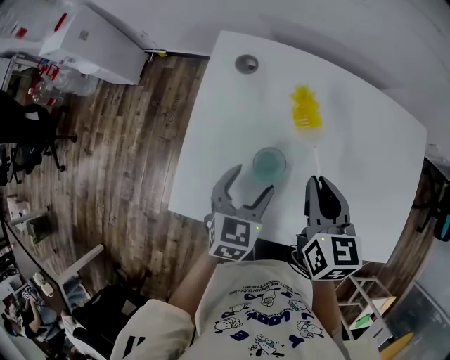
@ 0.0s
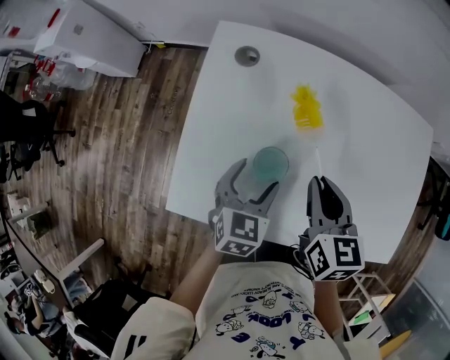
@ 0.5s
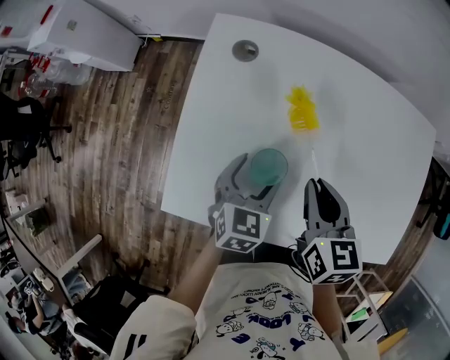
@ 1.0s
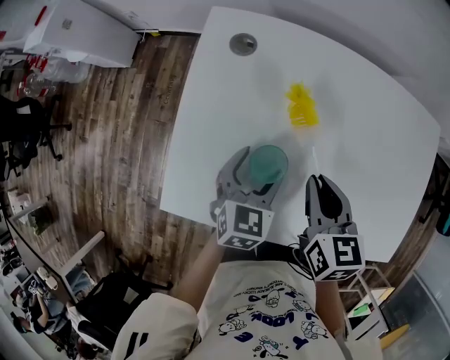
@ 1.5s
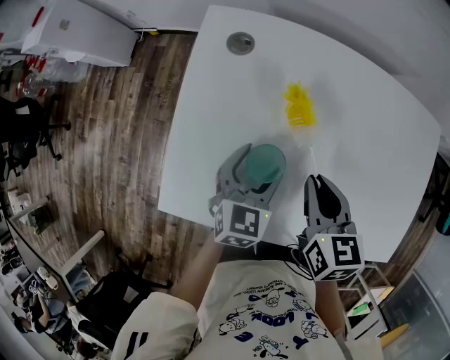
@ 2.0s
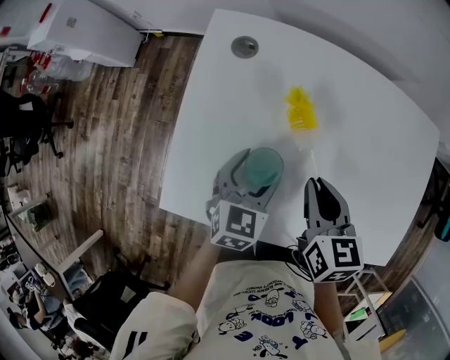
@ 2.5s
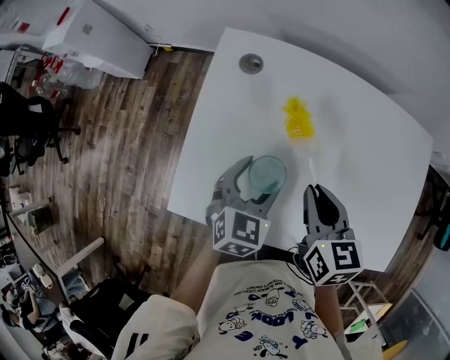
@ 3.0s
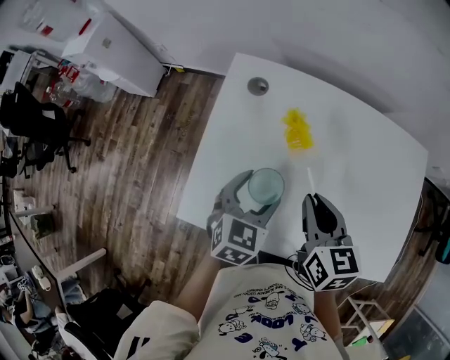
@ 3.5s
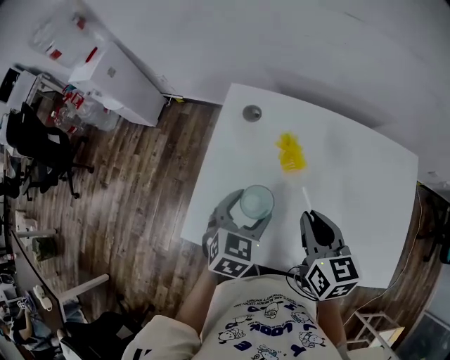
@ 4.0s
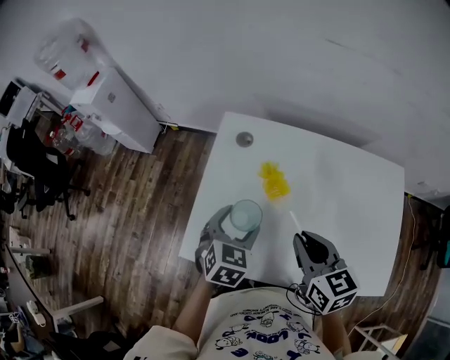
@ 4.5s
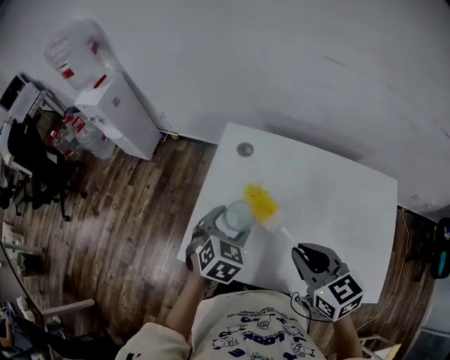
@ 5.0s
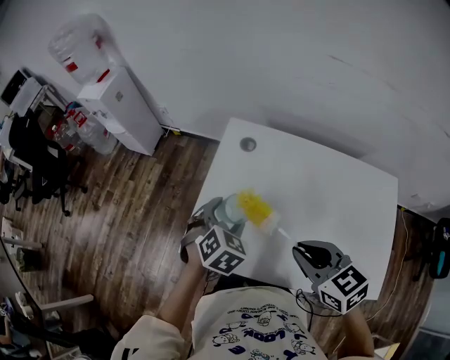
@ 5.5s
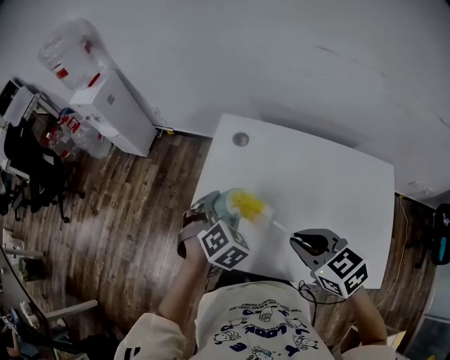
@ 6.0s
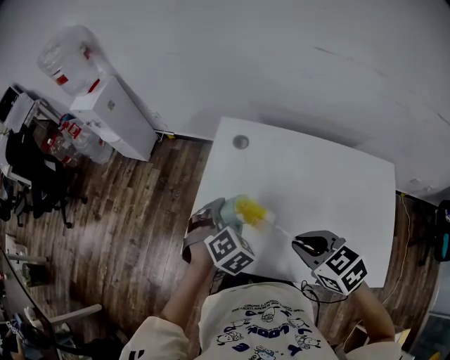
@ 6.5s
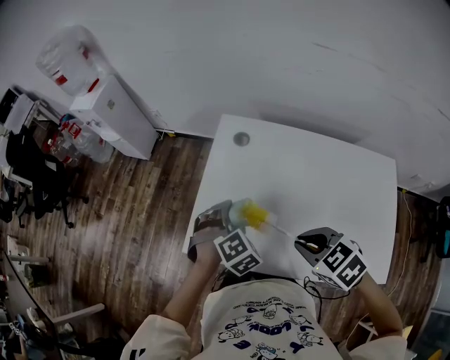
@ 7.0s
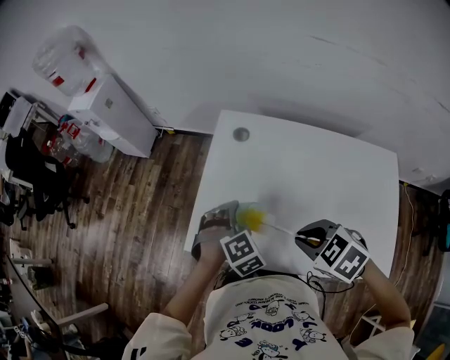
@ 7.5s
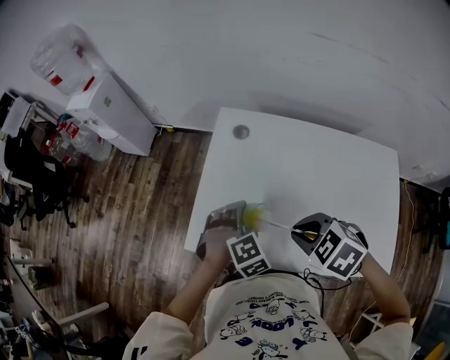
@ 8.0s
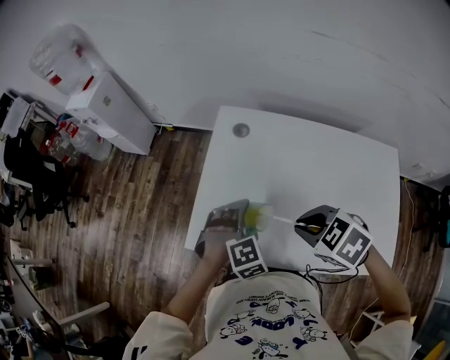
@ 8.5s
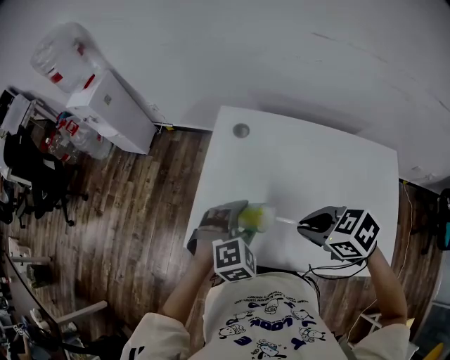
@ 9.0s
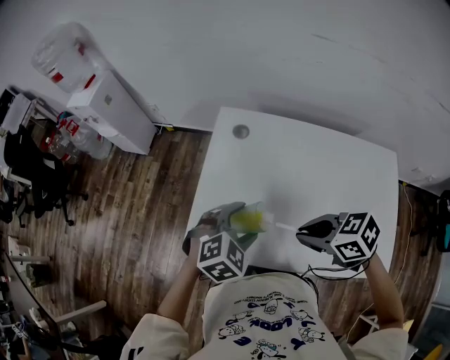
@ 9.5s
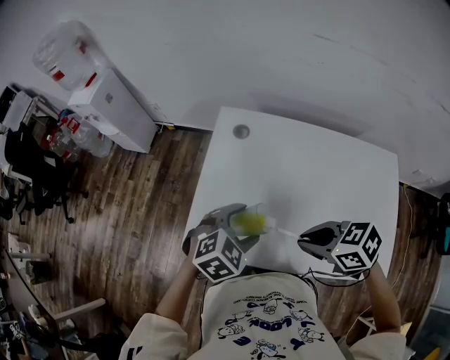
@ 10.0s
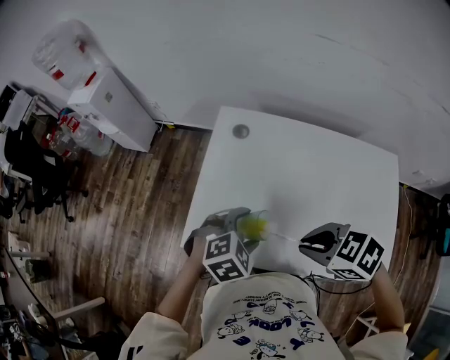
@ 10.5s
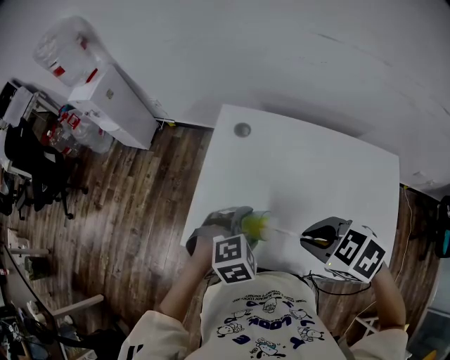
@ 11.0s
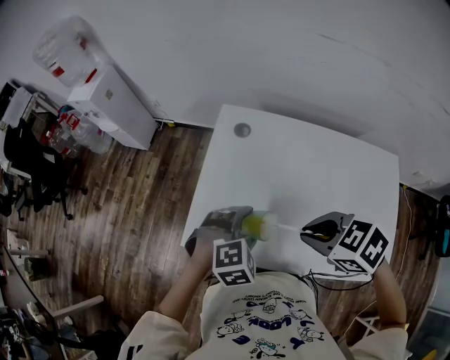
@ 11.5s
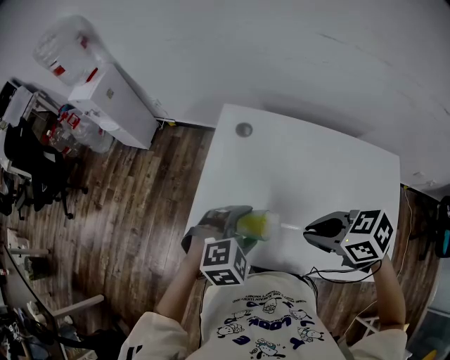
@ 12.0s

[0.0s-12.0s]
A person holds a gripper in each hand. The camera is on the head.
0.0s to 2.0s: The right gripper travels downward by about 5 cm; the left gripper changes place by roughly 5 cm.
2.0s to 4.0s: Both grippers travel together upward, roughly 10 cm.
4.0s to 6.0s: The right gripper ends up roughly 10 cm from where it was, and swivels about 40 degrees. Meanwhile the left gripper moves approximately 5 cm, and swivels some 30 degrees.
6.0s to 8.0s: The right gripper swivels roughly 30 degrees. The left gripper heads backward, covering approximately 5 cm, and turns by approximately 20 degrees.
8.0s to 10.0s: The right gripper rotates approximately 30 degrees. The left gripper heads upward, covering some 5 cm, and turns by some 30 degrees.

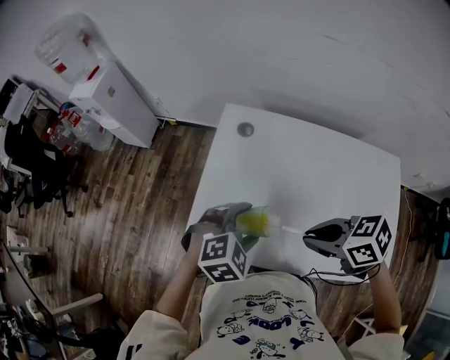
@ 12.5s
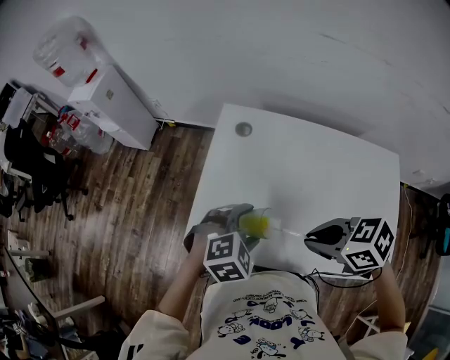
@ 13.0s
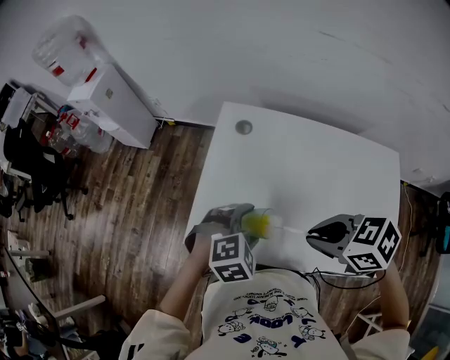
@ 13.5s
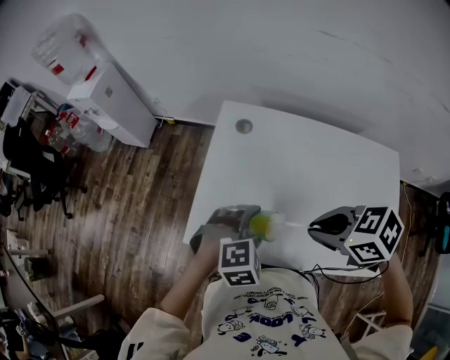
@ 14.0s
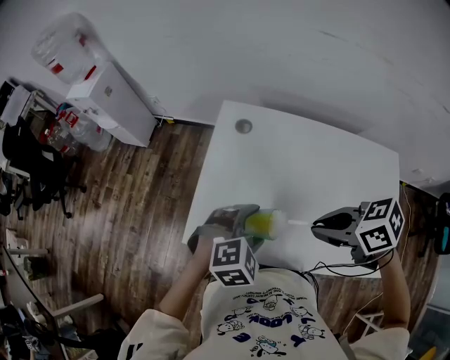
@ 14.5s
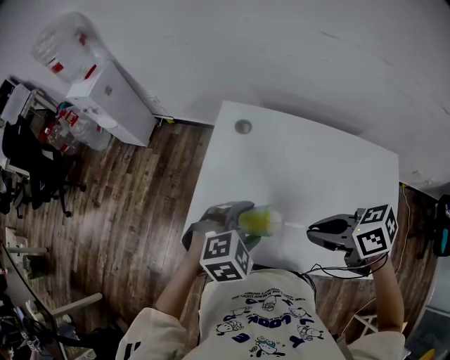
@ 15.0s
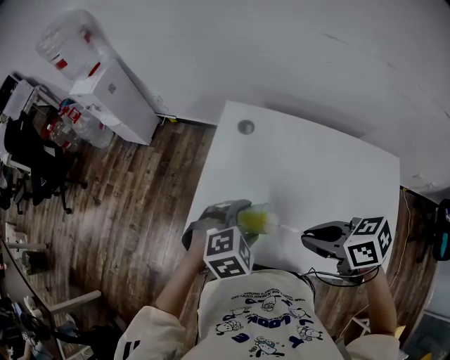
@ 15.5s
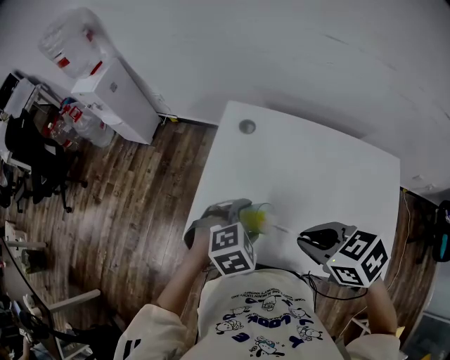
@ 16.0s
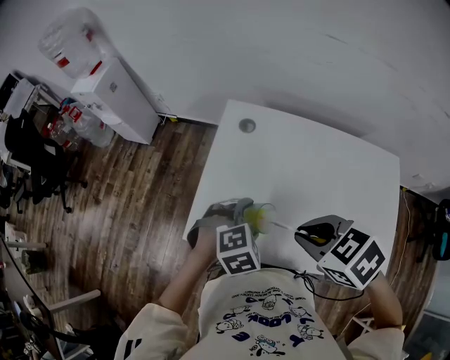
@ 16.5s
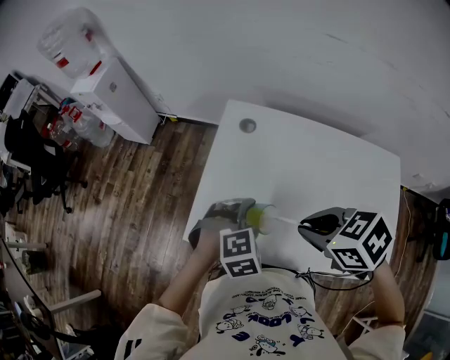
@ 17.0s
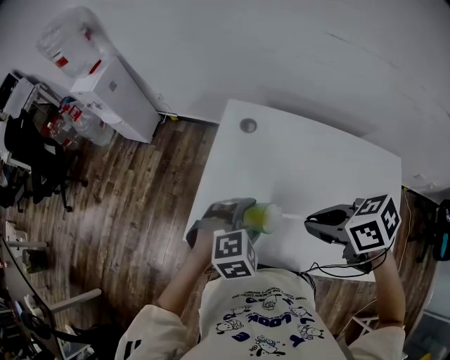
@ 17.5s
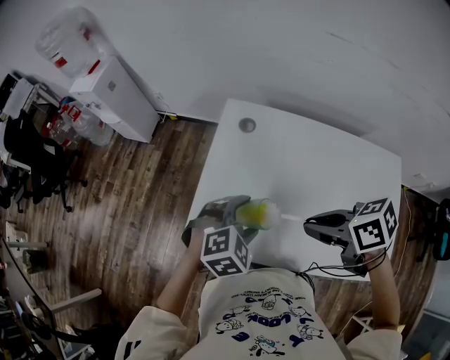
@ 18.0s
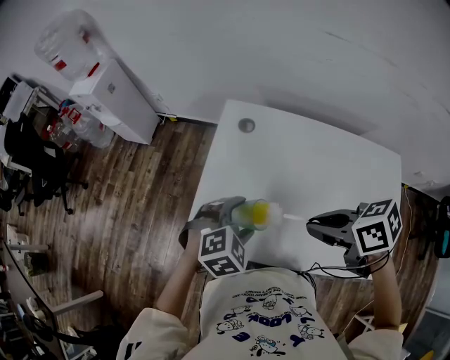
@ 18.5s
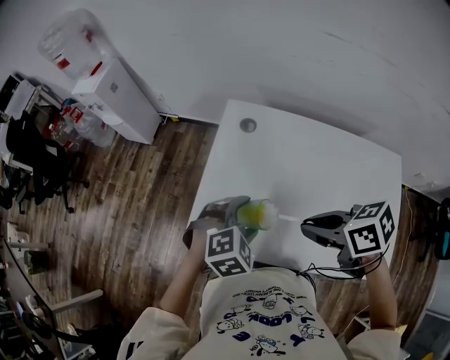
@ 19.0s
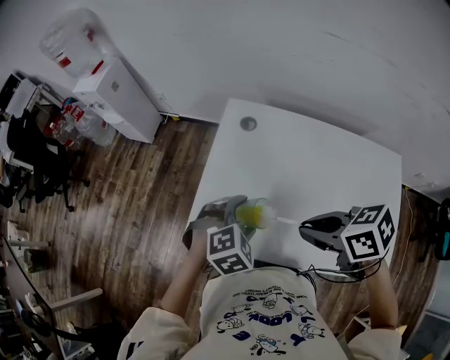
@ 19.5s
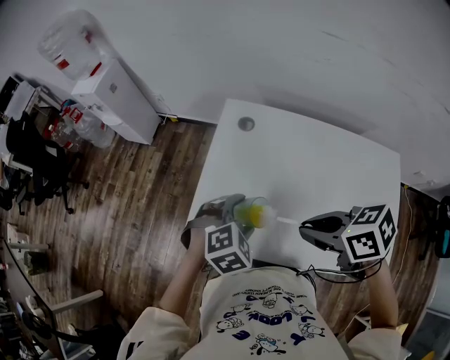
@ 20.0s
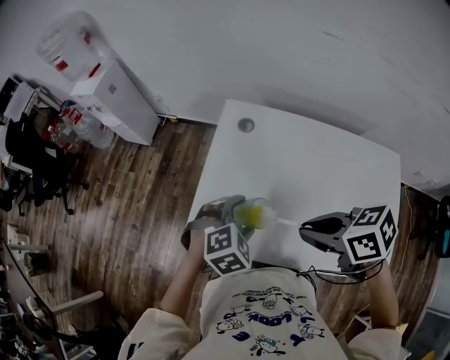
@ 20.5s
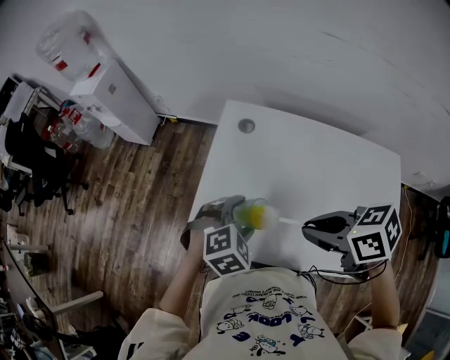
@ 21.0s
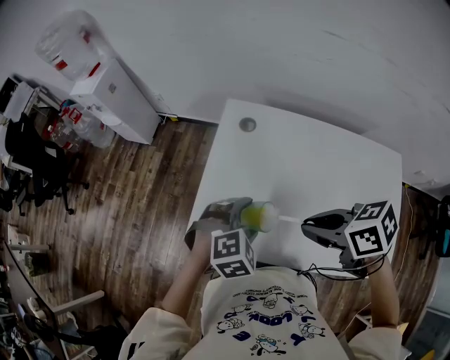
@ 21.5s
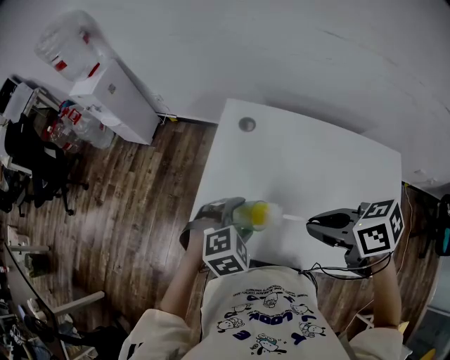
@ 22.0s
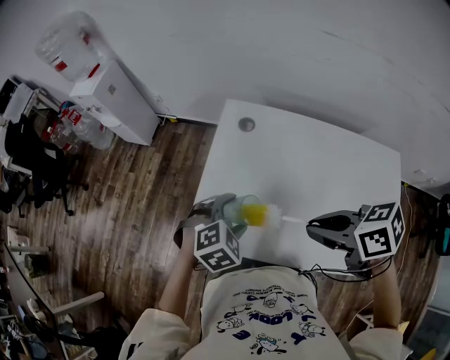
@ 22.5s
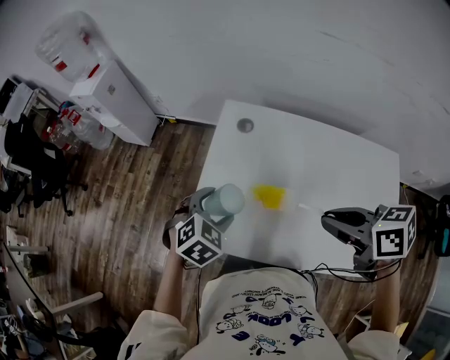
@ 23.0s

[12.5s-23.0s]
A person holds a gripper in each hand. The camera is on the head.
12.5s to 14.5s: The grippers move only a little.
14.5s to 16.5s: The right gripper ends up approximately 5 cm from where it was, and swivels roughly 20 degrees.
16.5s to 19.0s: The right gripper changes its angle by about 30 degrees.
19.0s to 21.0s: The grippers move only a little.
21.0s to 23.0s: The right gripper moves approximately 5 cm. The left gripper shifts approximately 5 cm to the left.

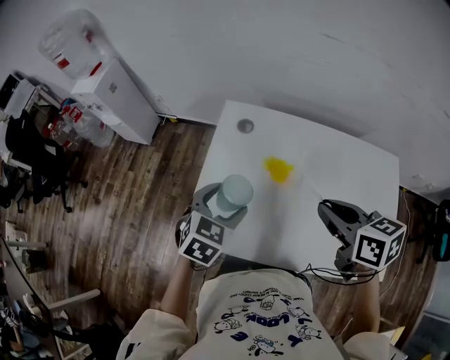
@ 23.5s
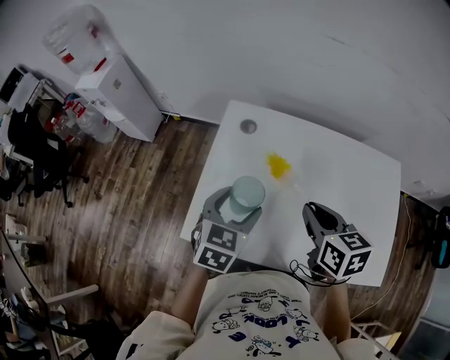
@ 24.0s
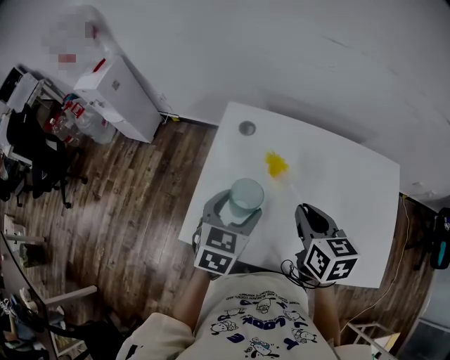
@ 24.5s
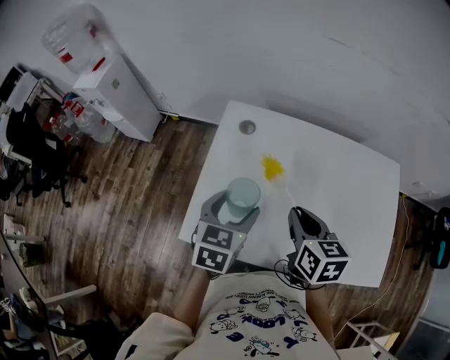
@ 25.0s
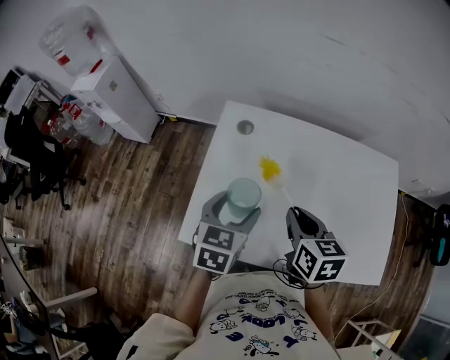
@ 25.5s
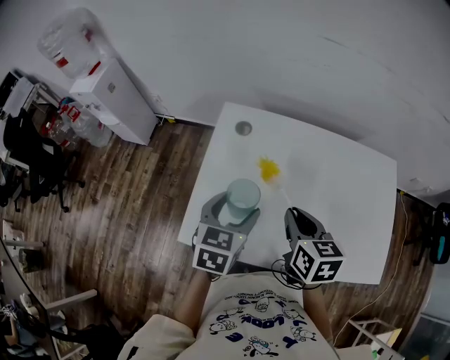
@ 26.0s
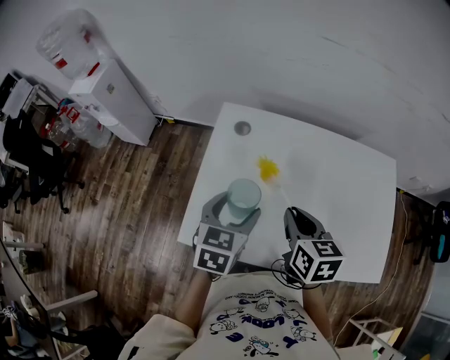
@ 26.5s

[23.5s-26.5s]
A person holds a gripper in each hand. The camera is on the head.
23.5s to 25.0s: The right gripper heads downward, covering approximately 5 cm.
25.0s to 26.5s: Both grippers stay put.

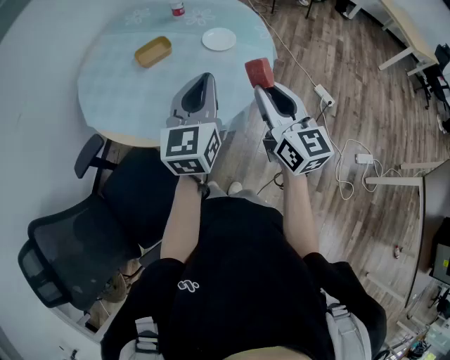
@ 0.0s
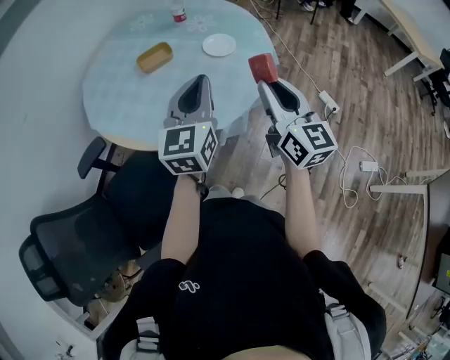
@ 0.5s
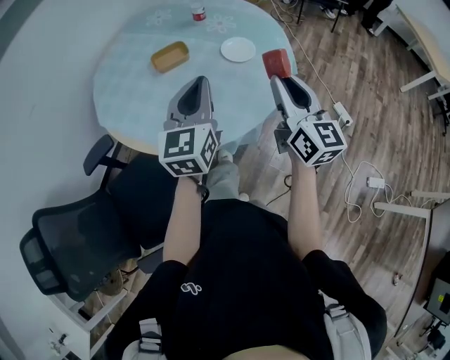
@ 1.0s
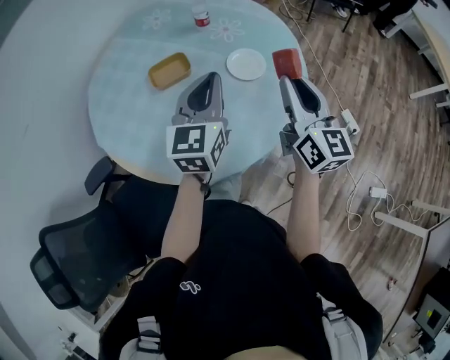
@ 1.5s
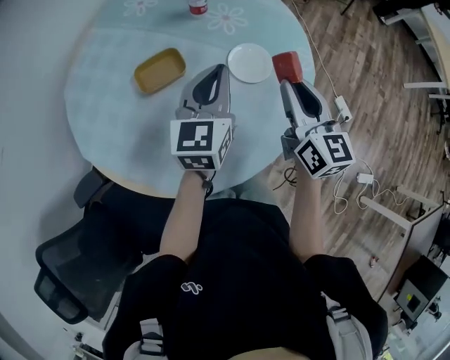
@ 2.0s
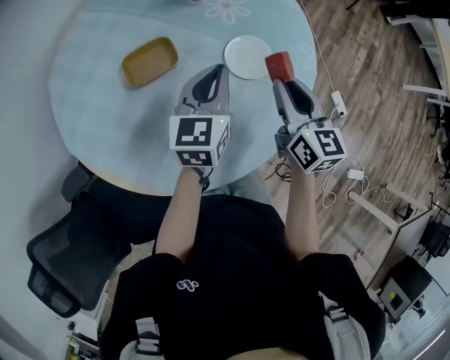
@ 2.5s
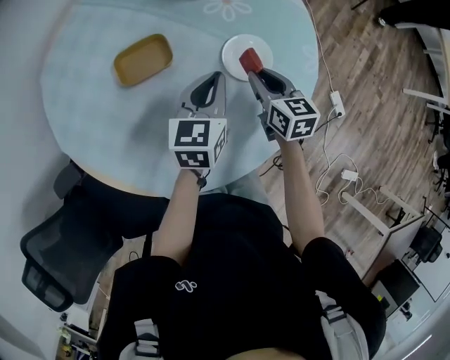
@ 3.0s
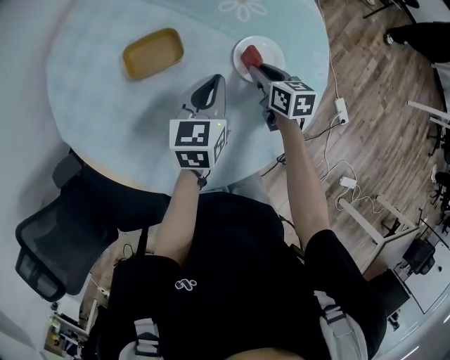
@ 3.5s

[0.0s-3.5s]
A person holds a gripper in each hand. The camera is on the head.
0.0s to 2.0s: Both grippers travel together forward, some 35 cm.
2.0s to 3.5s: The left gripper is displaced downward by approximately 15 cm; the right gripper goes roughly 25 cm downward and forward, and angles its fingers downward, by roughly 30 degrees.
